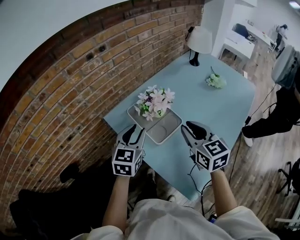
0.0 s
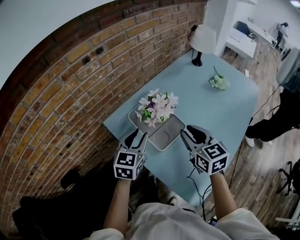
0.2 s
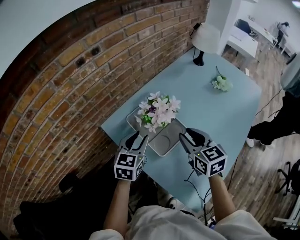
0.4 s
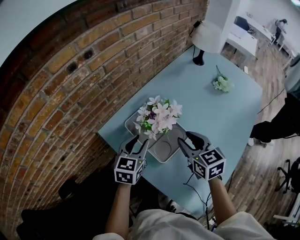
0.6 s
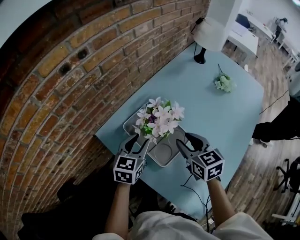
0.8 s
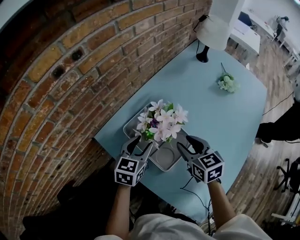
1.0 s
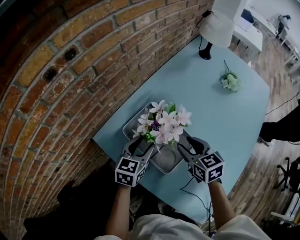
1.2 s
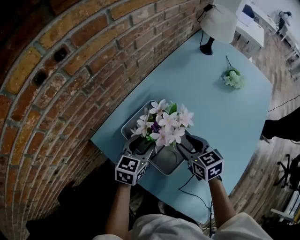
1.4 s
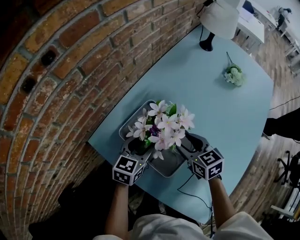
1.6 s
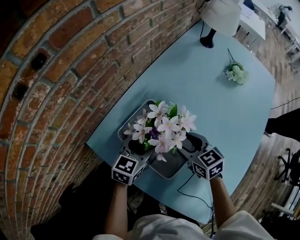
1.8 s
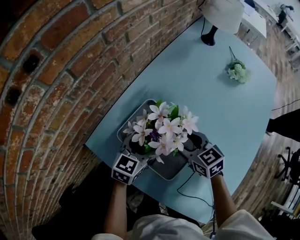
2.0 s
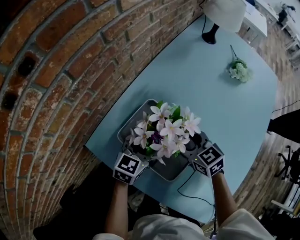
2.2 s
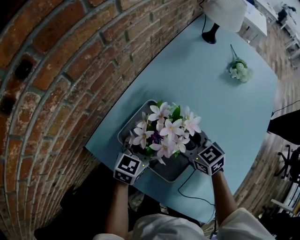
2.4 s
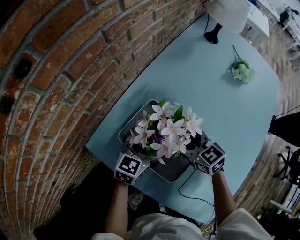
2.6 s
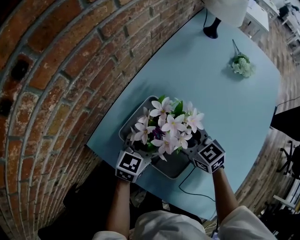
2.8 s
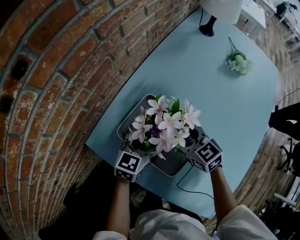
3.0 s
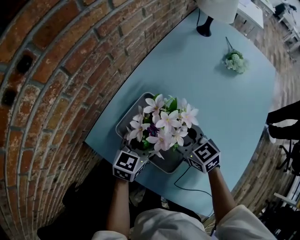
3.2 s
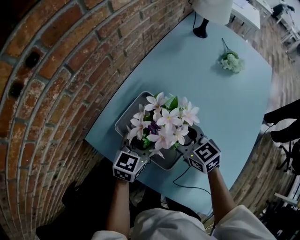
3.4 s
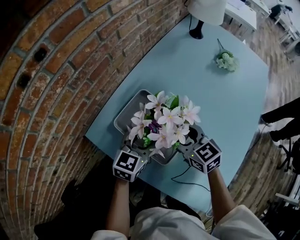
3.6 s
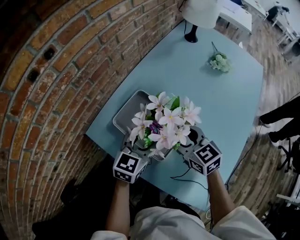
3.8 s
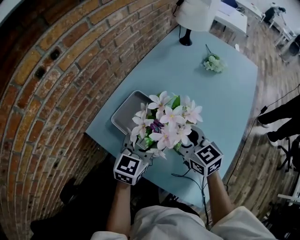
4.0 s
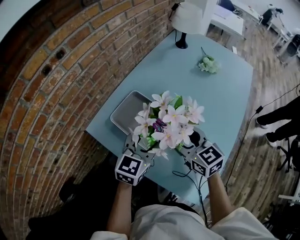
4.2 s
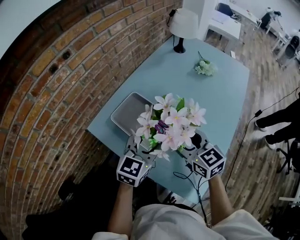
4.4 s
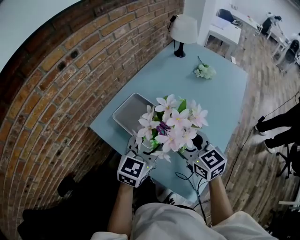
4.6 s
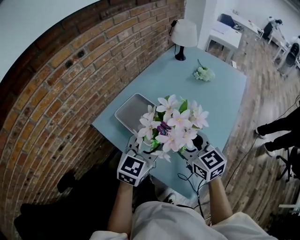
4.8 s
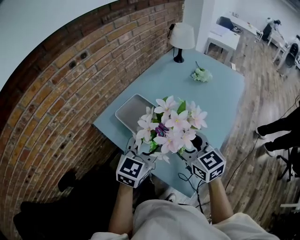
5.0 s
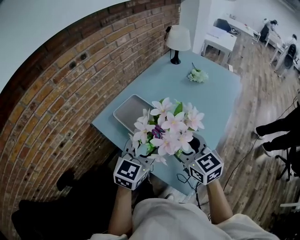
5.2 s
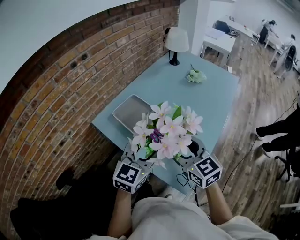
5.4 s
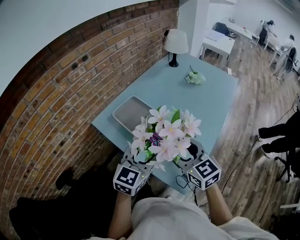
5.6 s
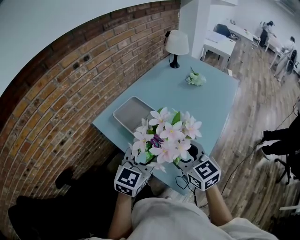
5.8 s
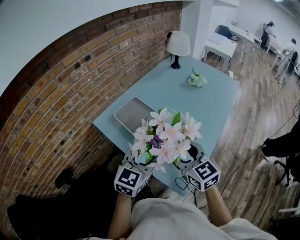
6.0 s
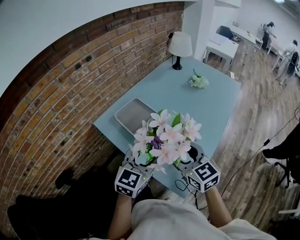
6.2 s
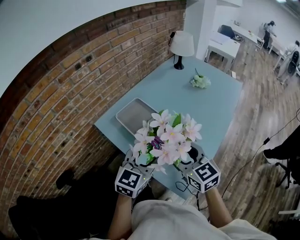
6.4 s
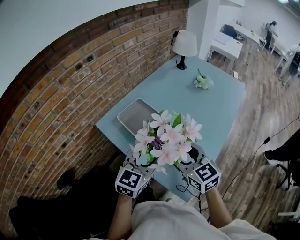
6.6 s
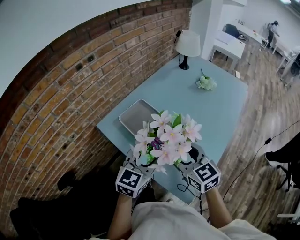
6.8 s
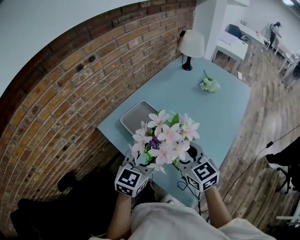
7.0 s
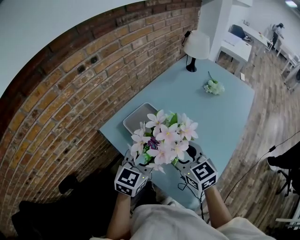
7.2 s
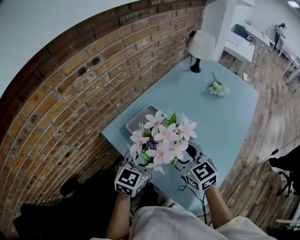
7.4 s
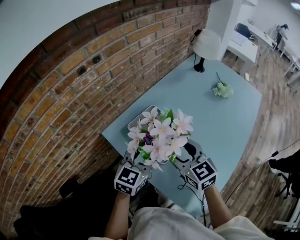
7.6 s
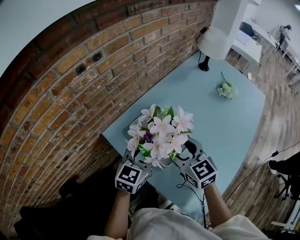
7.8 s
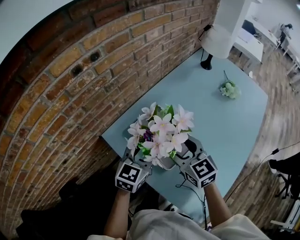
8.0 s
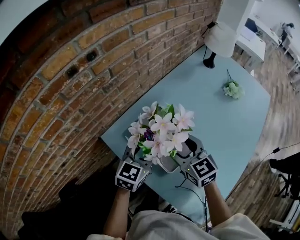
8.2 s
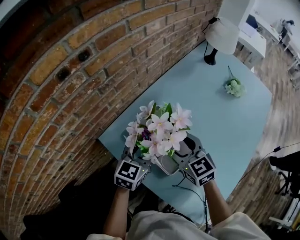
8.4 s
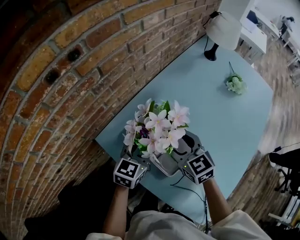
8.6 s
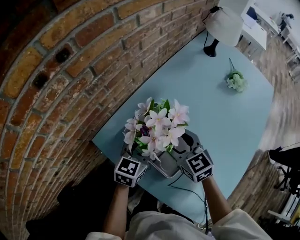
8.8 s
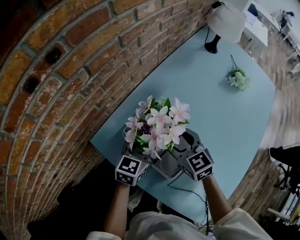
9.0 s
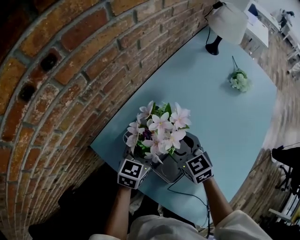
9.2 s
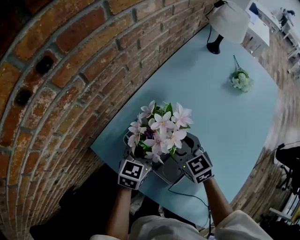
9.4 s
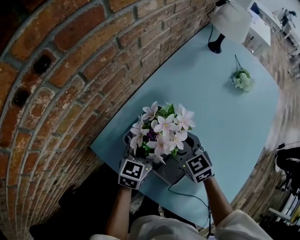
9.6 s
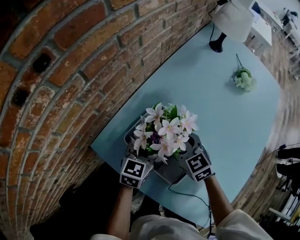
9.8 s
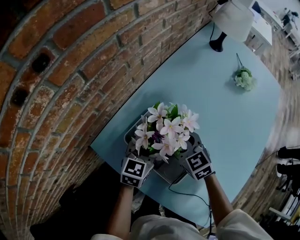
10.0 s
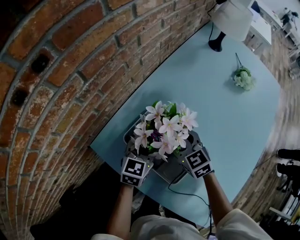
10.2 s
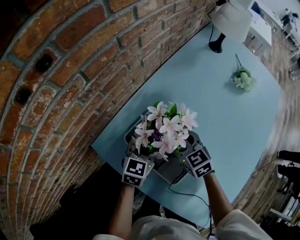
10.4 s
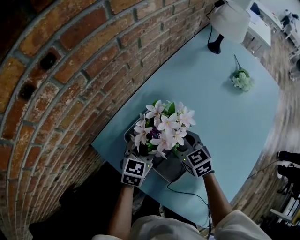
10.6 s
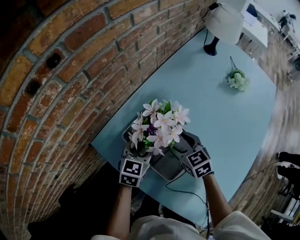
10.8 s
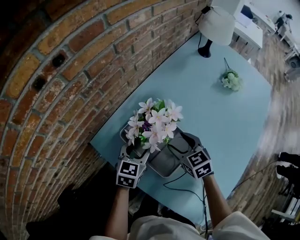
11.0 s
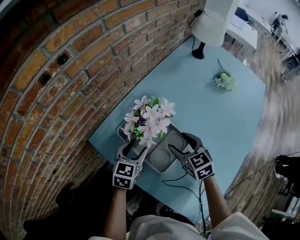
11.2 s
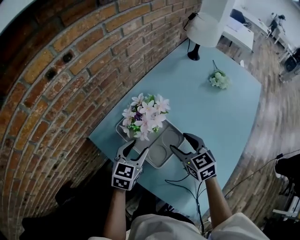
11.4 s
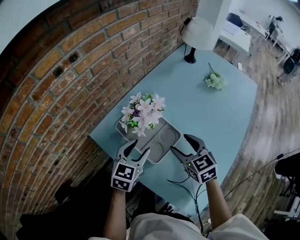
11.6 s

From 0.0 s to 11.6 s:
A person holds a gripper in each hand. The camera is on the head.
From 0.0 s to 1.4 s: The two grippers go some 25 cm downward and forward. The left gripper turns by about 20 degrees; the right gripper swivels some 20 degrees, and opens.
From 1.4 s to 2.8 s: The right gripper moves about 5 cm.
From 2.8 s to 4.4 s: Both grippers move backward, upward and to the right, some 35 cm.
From 4.4 s to 5.8 s: The two grippers go some 10 cm backward.
From 5.8 s to 7.2 s: The two grippers go some 15 cm forward and to the left.
From 7.2 s to 8.8 s: The two grippers go roughly 25 cm forward and downward.
From 8.8 s to 10.2 s: Both grippers move downward, some 5 cm.
From 10.2 s to 11.6 s: The right gripper goes about 20 cm backward, upward and to the right. The left gripper goes some 15 cm backward and upward.

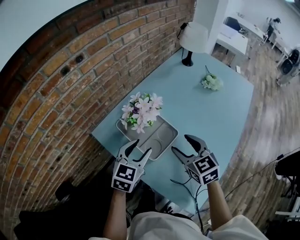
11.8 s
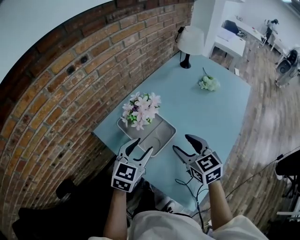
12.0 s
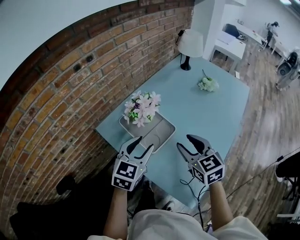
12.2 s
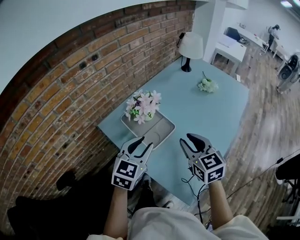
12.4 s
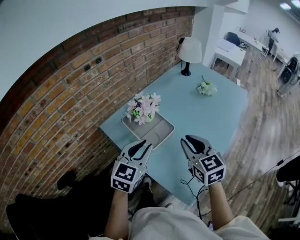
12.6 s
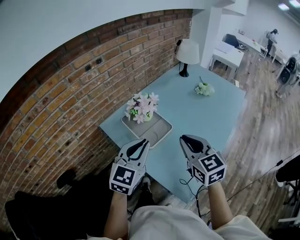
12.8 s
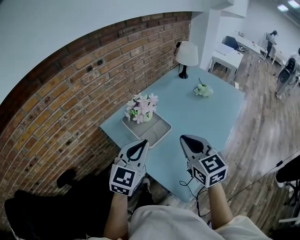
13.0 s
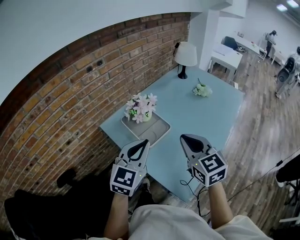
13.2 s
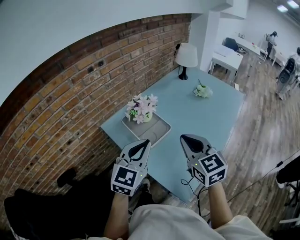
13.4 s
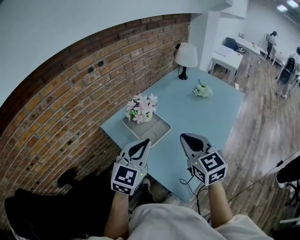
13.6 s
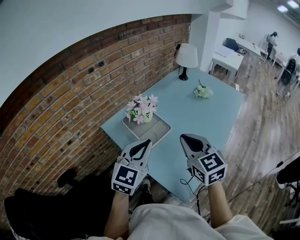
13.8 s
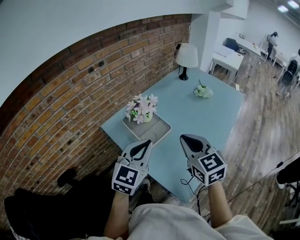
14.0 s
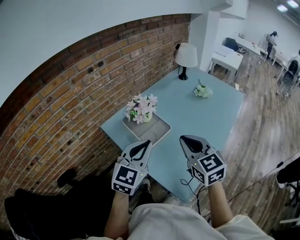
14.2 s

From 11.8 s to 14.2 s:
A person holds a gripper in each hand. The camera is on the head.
From 11.8 s to 13.0 s: The grippers both shift backward and upward by approximately 20 cm. The right gripper closes up. Meanwhile the left gripper closes.
From 13.0 s to 14.2 s: The grippers move only a little.

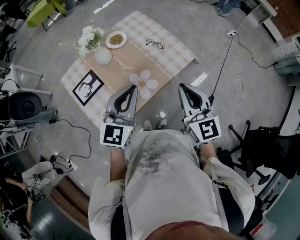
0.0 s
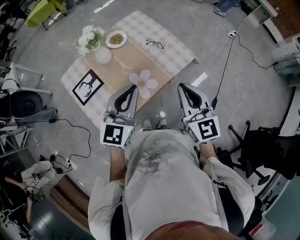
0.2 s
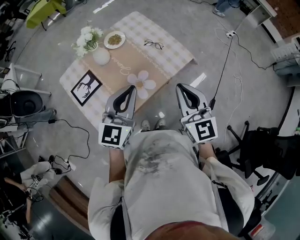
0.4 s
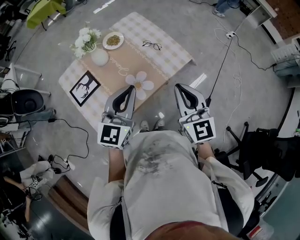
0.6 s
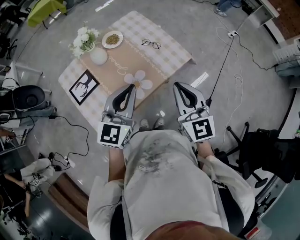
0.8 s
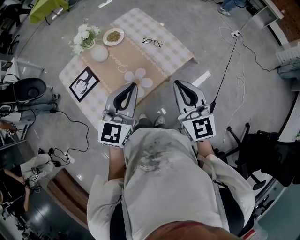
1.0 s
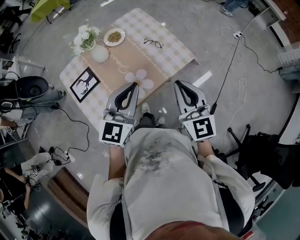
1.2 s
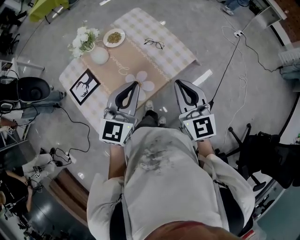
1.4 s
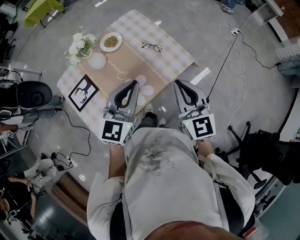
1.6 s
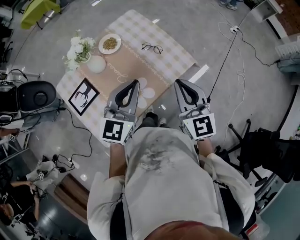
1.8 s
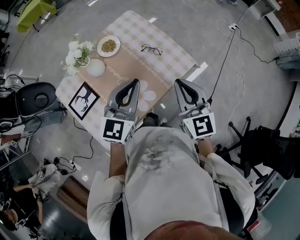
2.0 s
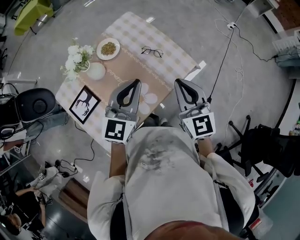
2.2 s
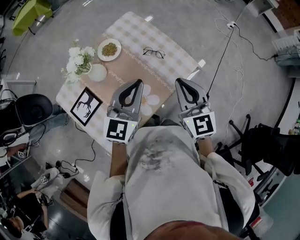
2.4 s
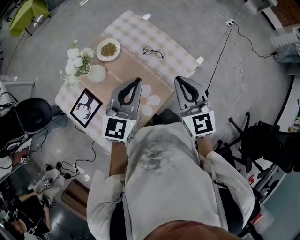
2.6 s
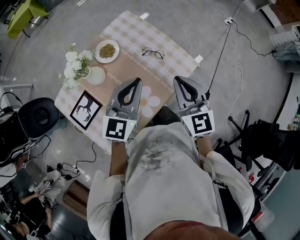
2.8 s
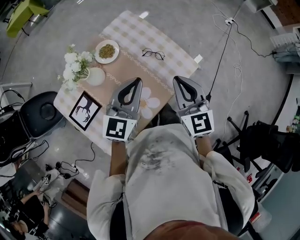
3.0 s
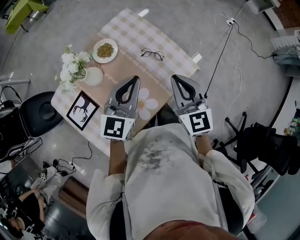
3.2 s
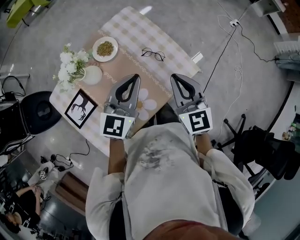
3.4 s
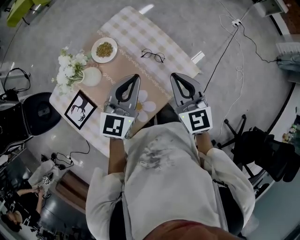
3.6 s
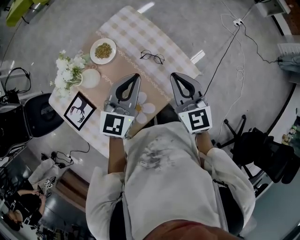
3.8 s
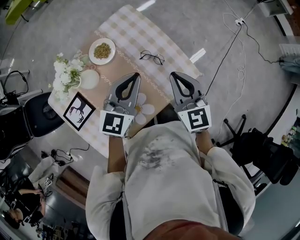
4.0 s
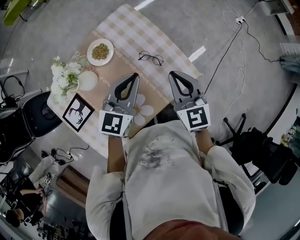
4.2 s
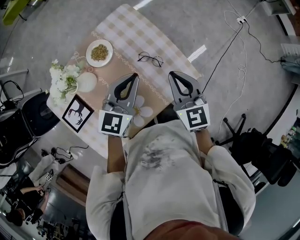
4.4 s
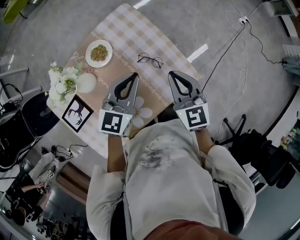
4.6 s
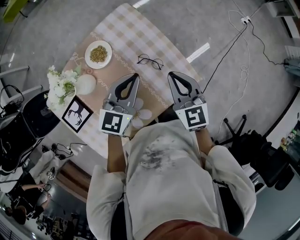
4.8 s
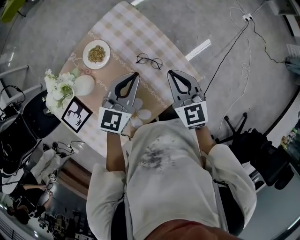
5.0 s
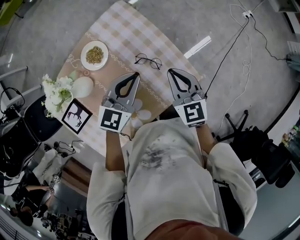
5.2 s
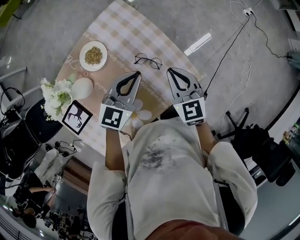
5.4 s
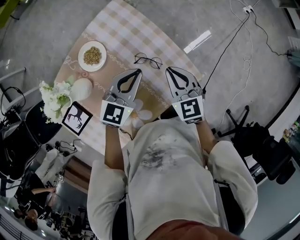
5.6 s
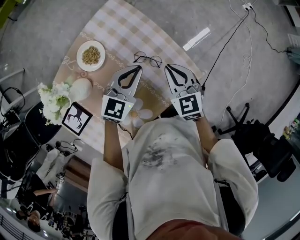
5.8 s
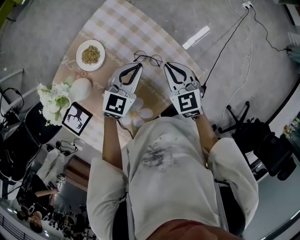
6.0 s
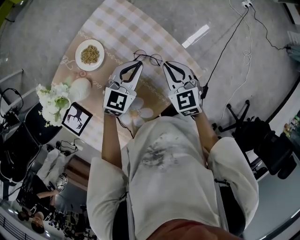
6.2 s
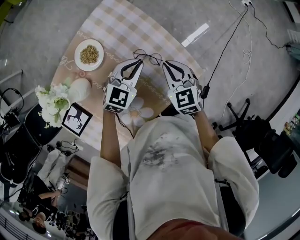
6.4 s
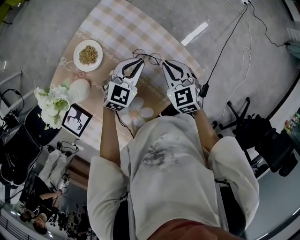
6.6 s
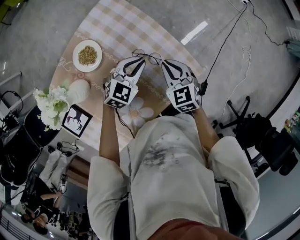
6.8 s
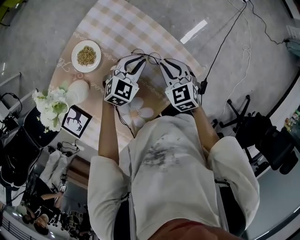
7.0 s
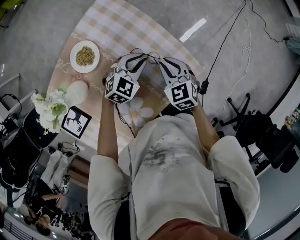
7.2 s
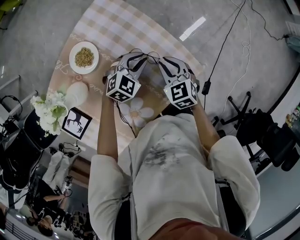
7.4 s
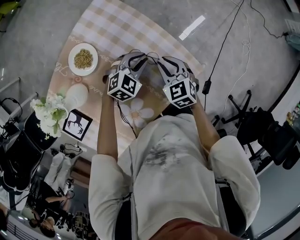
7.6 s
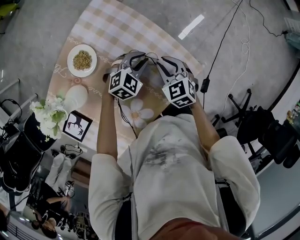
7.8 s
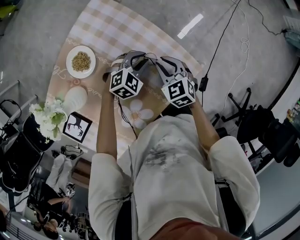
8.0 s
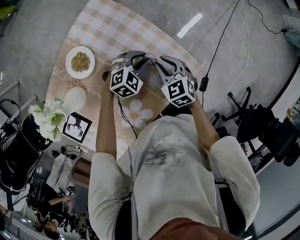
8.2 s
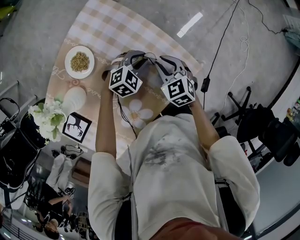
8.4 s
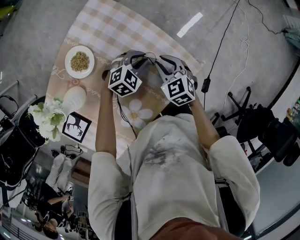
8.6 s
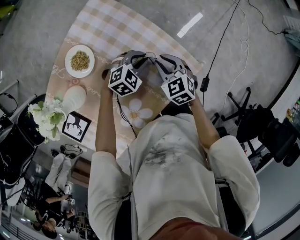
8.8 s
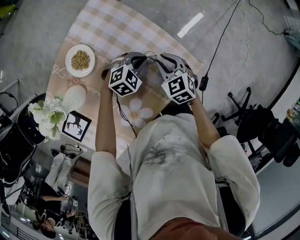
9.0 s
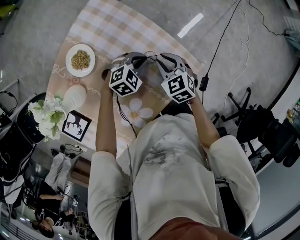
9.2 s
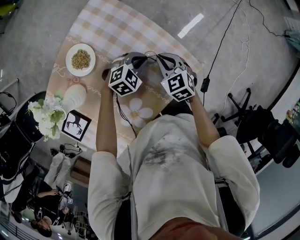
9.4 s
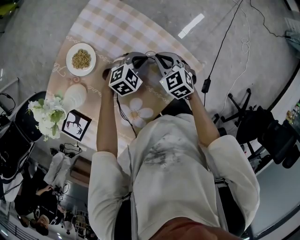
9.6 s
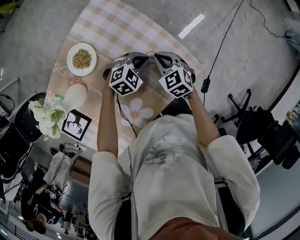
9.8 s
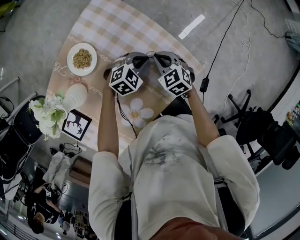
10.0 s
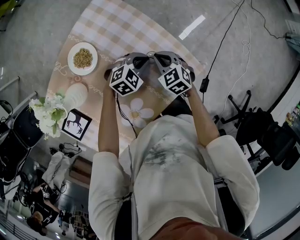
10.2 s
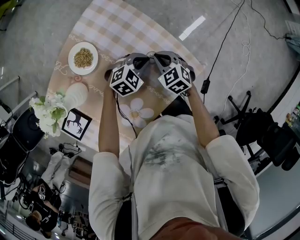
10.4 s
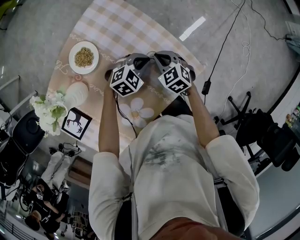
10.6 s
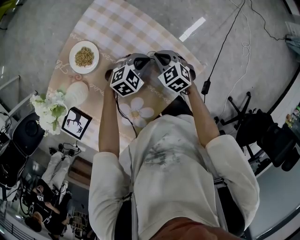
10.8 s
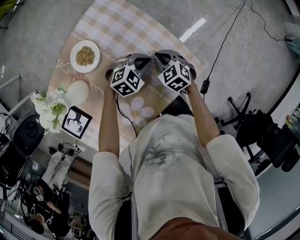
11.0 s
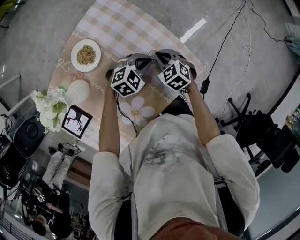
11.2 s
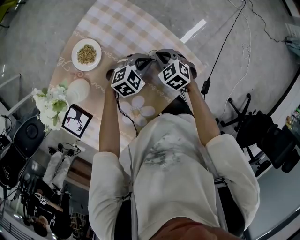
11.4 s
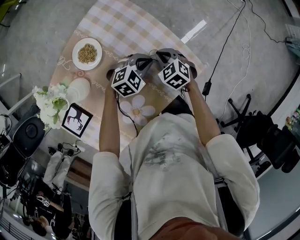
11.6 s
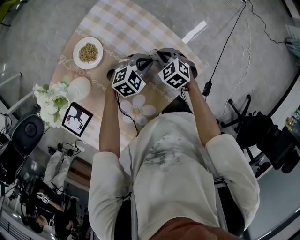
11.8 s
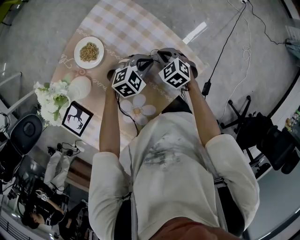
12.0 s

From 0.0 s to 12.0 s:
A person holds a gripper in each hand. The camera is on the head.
From 0.0 s to 1.6 s: Both grippers travel together forward, approximately 5 cm.
From 1.6 s to 3.0 s: Both grippers move forward, approximately 10 cm.
From 3.0 s to 4.4 s: Both grippers travel together forward and downward, approximately 10 cm.
From 4.4 s to 6.0 s: The two grippers go about 15 cm downward and forward.
From 6.0 s to 7.6 s: The right gripper travels downward by about 10 cm. The left gripper is displaced downward by some 10 cm, and changes its angle by about 30 degrees.
From 7.6 s to 12.0 s: The grippers stay close to where they were, moving slightly.
